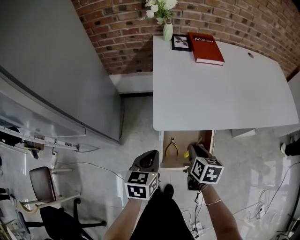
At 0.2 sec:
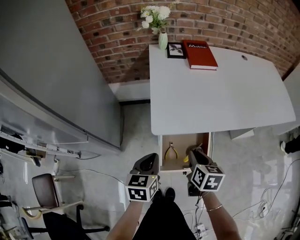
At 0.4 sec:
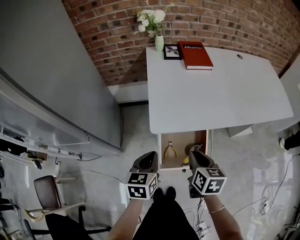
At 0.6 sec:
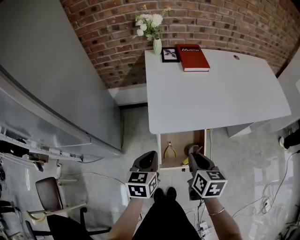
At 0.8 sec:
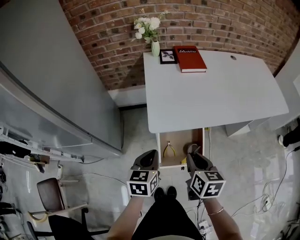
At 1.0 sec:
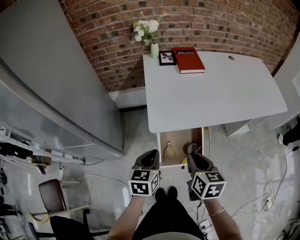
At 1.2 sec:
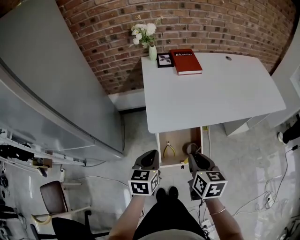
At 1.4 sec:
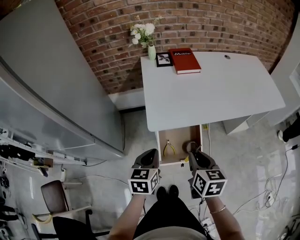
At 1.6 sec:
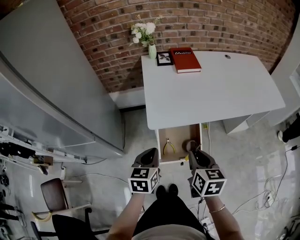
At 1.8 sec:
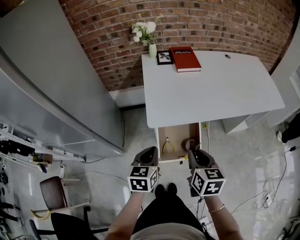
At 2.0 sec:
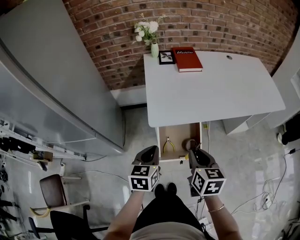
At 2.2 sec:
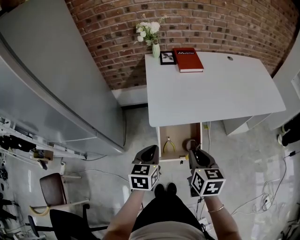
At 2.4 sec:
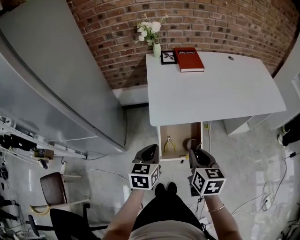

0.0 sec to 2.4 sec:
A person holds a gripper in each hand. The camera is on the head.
0.0 sec to 1.2 sec: The left gripper heads upward, covering some 10 cm, while the right gripper is displaced upward and backward by some 20 cm.
1.2 sec to 2.4 sec: The grippers make only small movements.

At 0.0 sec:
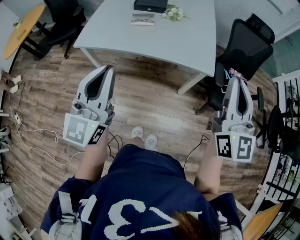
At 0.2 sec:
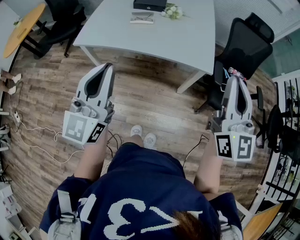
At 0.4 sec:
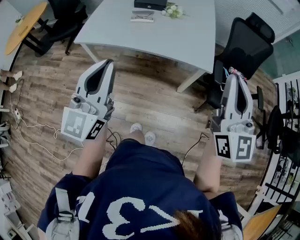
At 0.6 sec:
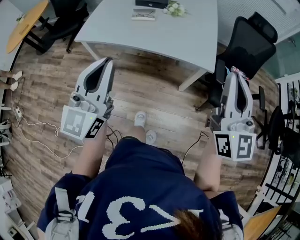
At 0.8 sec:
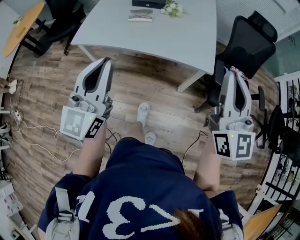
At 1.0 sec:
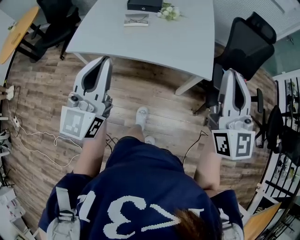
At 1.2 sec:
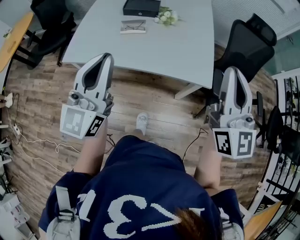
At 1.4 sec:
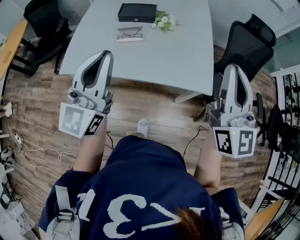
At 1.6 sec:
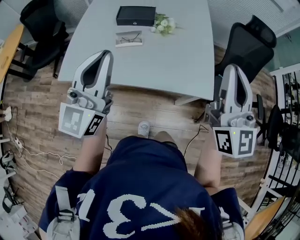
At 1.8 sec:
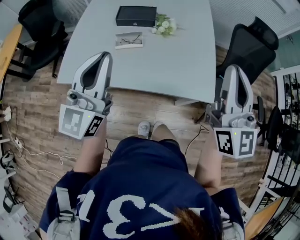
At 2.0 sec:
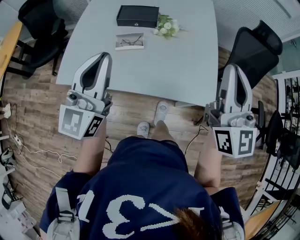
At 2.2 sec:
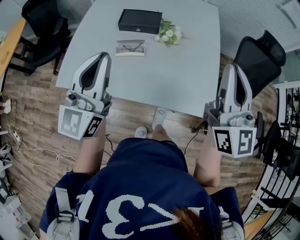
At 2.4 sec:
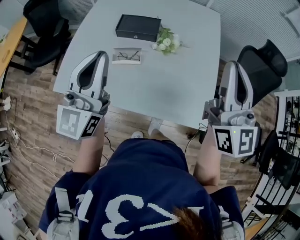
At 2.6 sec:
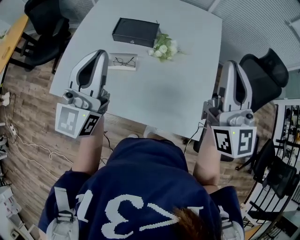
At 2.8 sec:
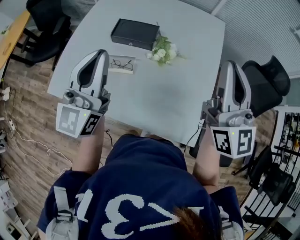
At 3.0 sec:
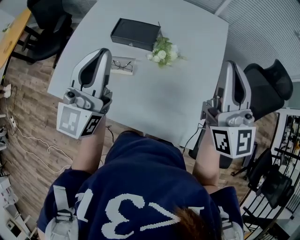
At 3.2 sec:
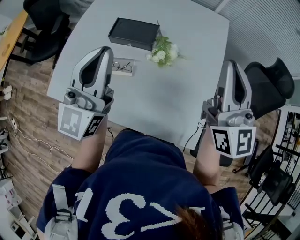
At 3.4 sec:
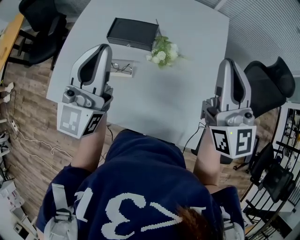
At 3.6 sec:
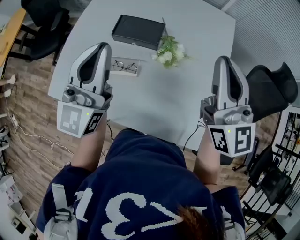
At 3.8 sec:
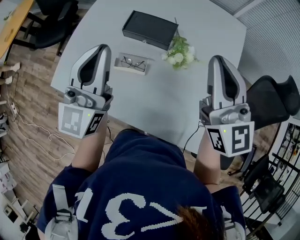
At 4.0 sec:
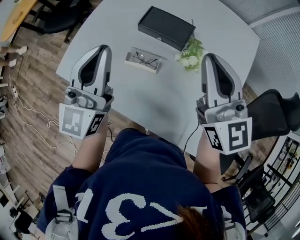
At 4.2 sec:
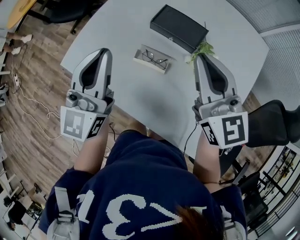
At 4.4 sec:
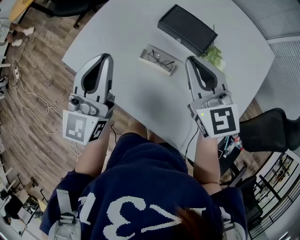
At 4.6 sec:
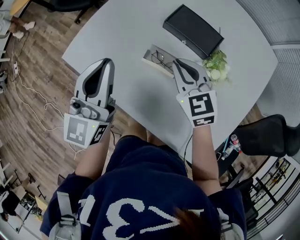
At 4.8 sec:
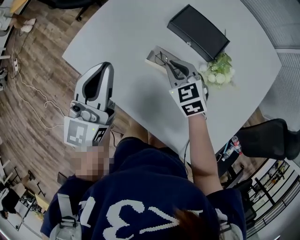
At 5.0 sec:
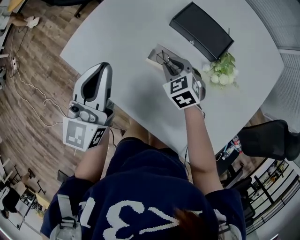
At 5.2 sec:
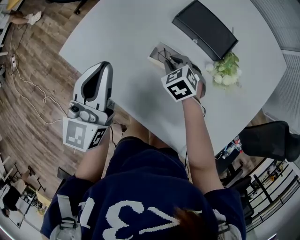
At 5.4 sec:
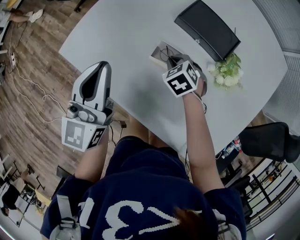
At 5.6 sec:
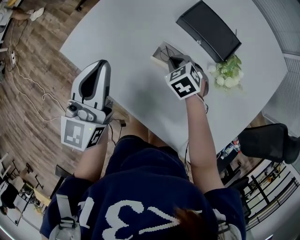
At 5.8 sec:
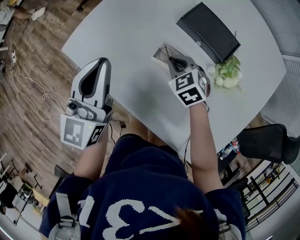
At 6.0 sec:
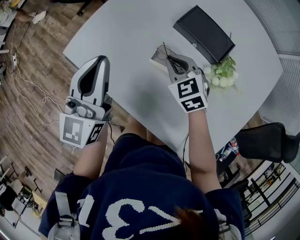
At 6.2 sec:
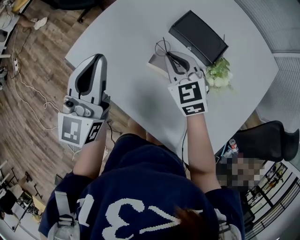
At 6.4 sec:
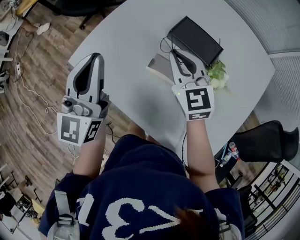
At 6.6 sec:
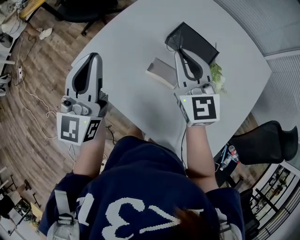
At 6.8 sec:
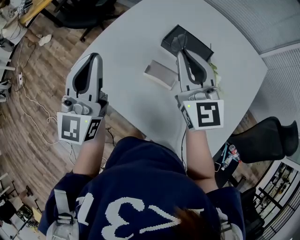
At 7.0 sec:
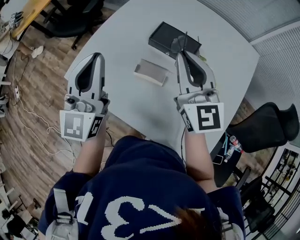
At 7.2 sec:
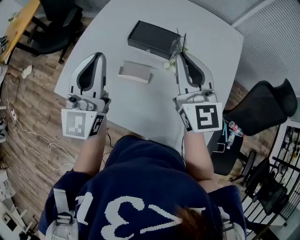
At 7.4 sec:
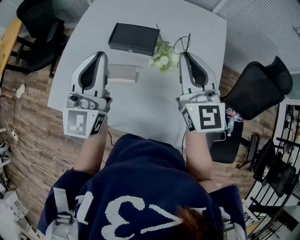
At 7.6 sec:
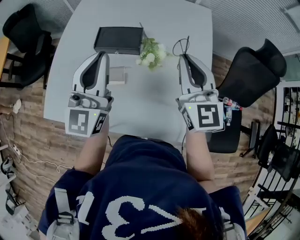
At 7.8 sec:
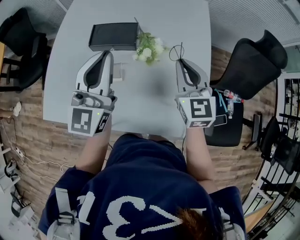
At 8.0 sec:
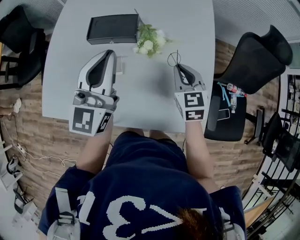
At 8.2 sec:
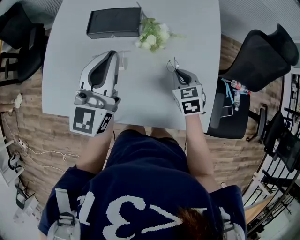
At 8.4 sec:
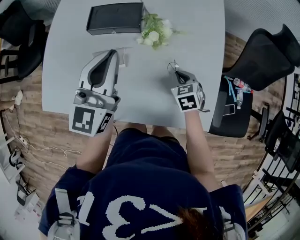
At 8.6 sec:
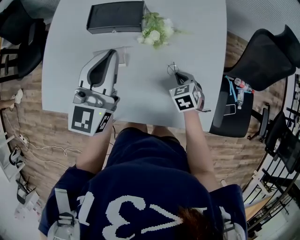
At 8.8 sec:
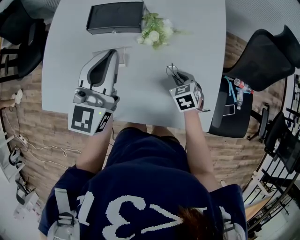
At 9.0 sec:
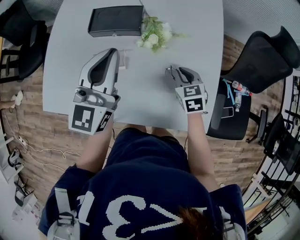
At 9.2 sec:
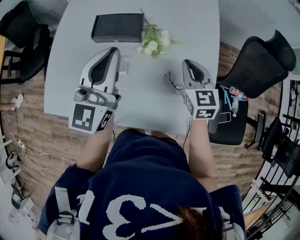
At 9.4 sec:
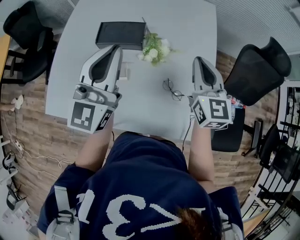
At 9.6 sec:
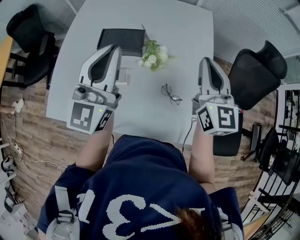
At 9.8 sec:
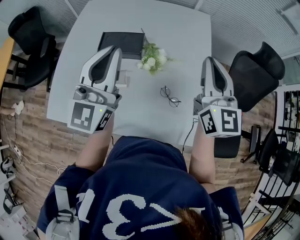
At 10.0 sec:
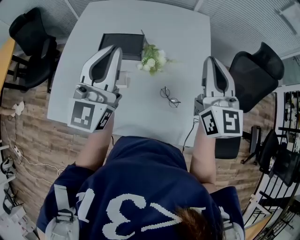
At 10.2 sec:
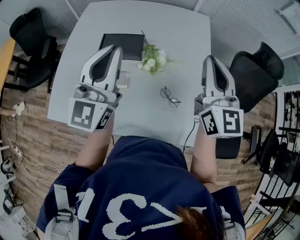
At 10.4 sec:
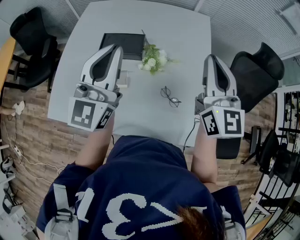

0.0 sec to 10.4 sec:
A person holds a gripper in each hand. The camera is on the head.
0.0 sec to 1.4 sec: Both grippers move forward, about 20 cm.
1.4 sec to 3.0 sec: The grippers both shift forward by approximately 30 cm.
3.0 sec to 4.4 sec: The right gripper changes place by some 30 cm, and rotates about 40 degrees; the left gripper changes place by some 20 cm, and rotates about 20 degrees.
4.4 sec to 6.0 sec: The left gripper goes about 5 cm to the left; the right gripper moves downward and to the left, about 20 cm, and changes its angle by some 30 degrees.
6.0 sec to 7.4 sec: The right gripper travels upward by approximately 25 cm, and angles its fingers upward, by about 40 degrees. Meanwhile the left gripper shifts by about 20 cm, and swivels approximately 30 degrees.
7.4 sec to 9.0 sec: The left gripper is displaced downward and to the right by approximately 10 cm, while the right gripper moves downward, some 30 cm, and tips its fingers downward by some 50 degrees.
9.0 sec to 10.4 sec: The left gripper heads upward, covering approximately 10 cm. Meanwhile the right gripper is displaced upward by roughly 35 cm, and tilts its fingers some 50 degrees upward.

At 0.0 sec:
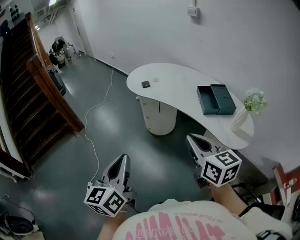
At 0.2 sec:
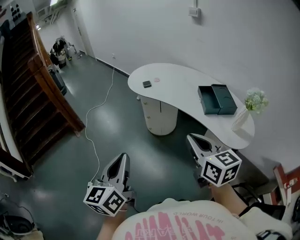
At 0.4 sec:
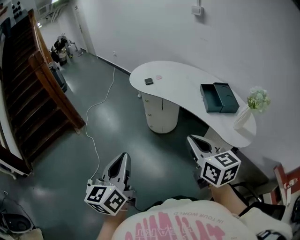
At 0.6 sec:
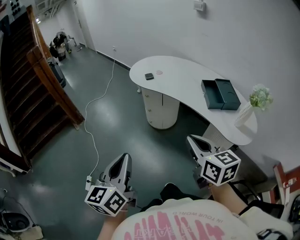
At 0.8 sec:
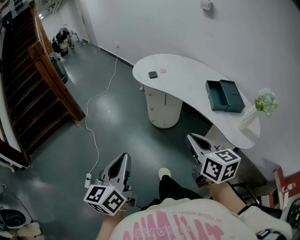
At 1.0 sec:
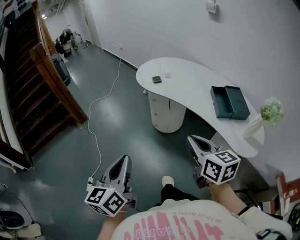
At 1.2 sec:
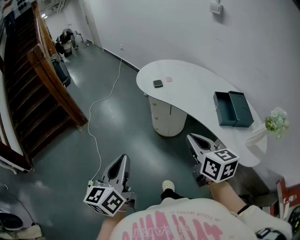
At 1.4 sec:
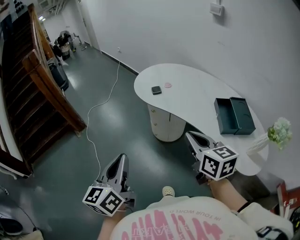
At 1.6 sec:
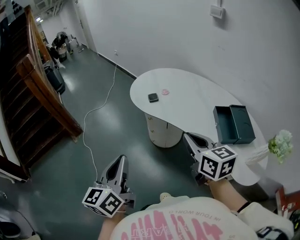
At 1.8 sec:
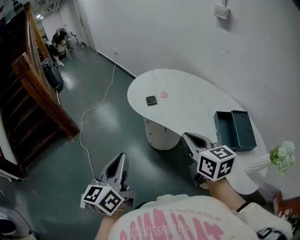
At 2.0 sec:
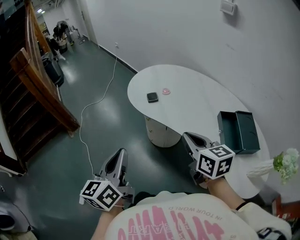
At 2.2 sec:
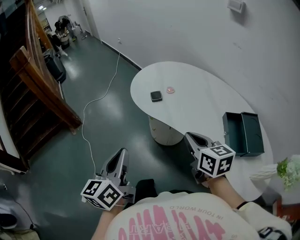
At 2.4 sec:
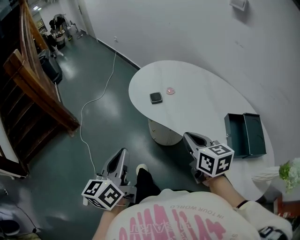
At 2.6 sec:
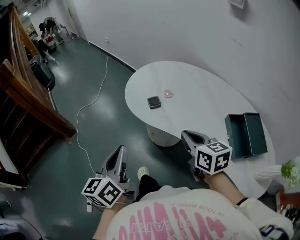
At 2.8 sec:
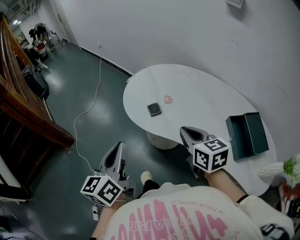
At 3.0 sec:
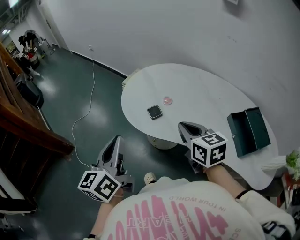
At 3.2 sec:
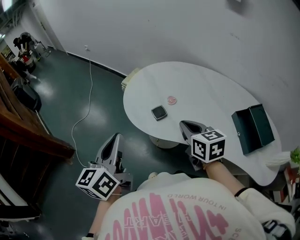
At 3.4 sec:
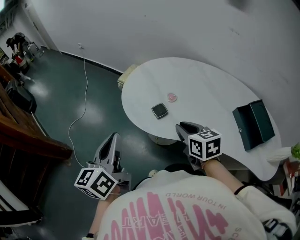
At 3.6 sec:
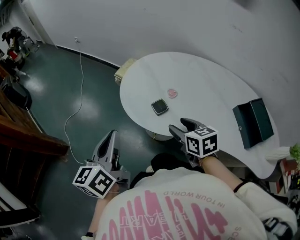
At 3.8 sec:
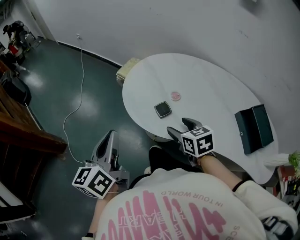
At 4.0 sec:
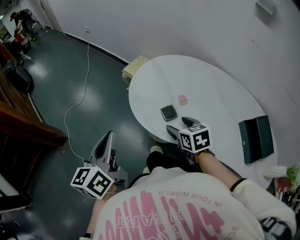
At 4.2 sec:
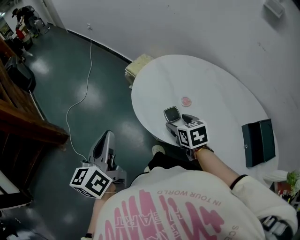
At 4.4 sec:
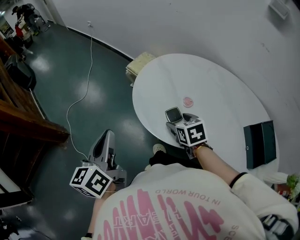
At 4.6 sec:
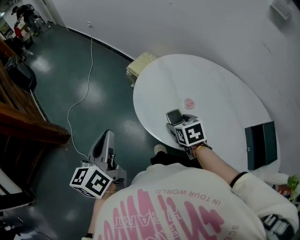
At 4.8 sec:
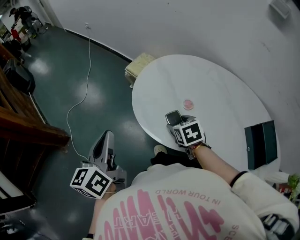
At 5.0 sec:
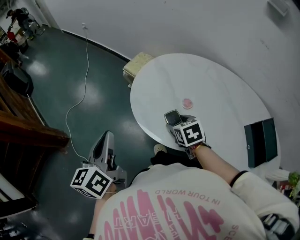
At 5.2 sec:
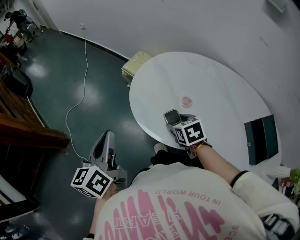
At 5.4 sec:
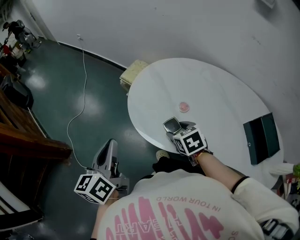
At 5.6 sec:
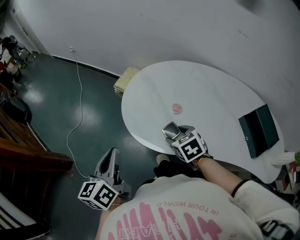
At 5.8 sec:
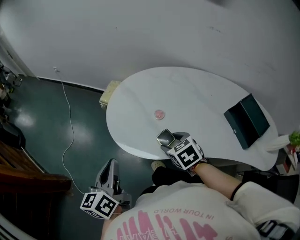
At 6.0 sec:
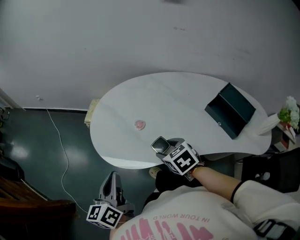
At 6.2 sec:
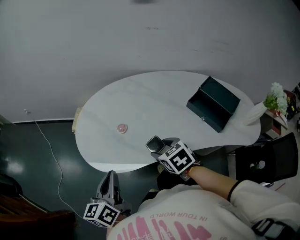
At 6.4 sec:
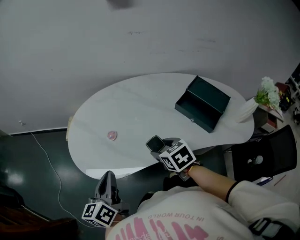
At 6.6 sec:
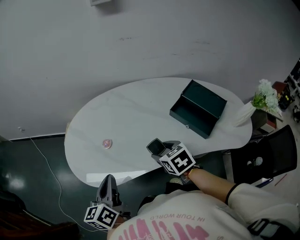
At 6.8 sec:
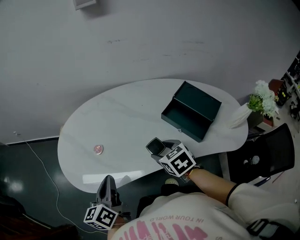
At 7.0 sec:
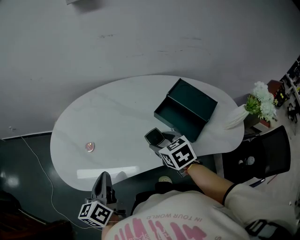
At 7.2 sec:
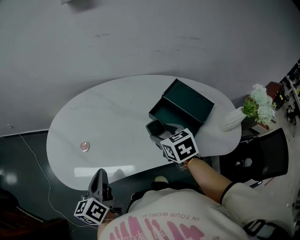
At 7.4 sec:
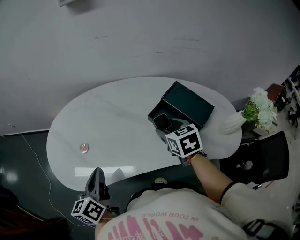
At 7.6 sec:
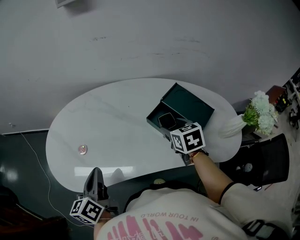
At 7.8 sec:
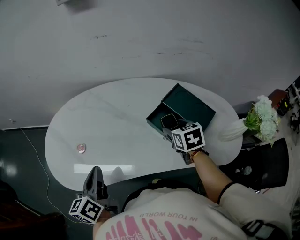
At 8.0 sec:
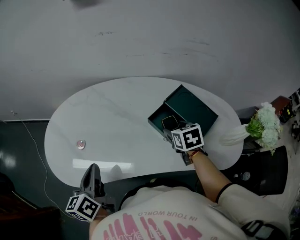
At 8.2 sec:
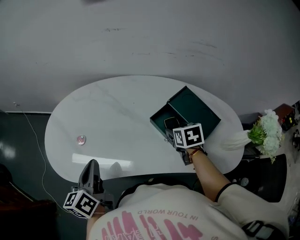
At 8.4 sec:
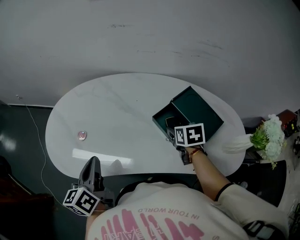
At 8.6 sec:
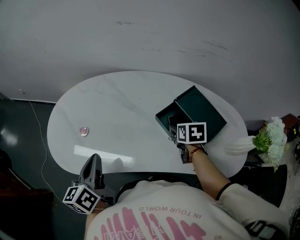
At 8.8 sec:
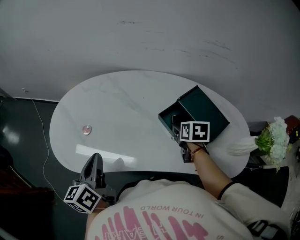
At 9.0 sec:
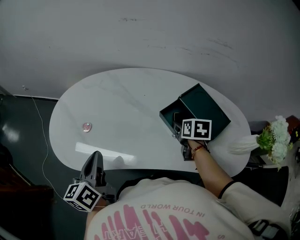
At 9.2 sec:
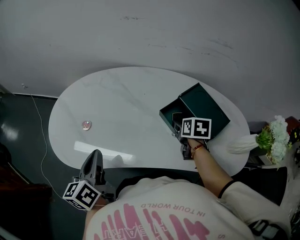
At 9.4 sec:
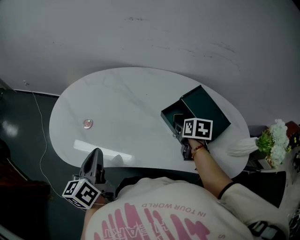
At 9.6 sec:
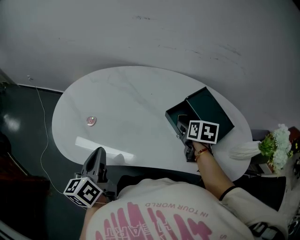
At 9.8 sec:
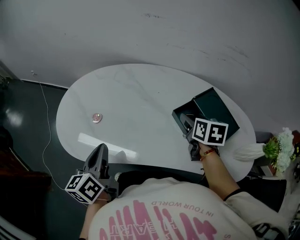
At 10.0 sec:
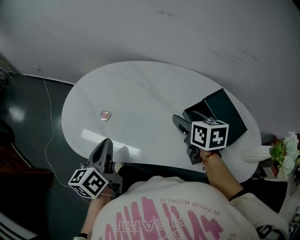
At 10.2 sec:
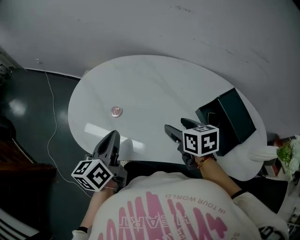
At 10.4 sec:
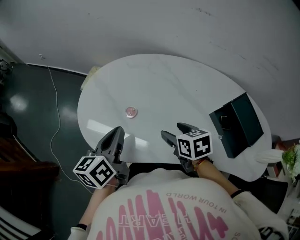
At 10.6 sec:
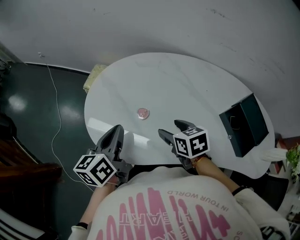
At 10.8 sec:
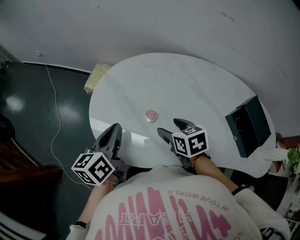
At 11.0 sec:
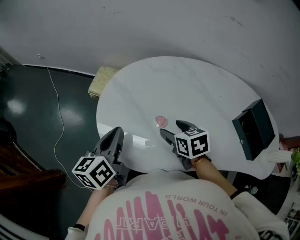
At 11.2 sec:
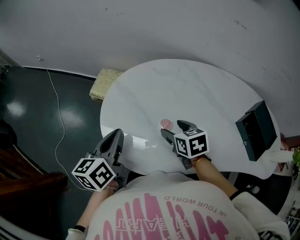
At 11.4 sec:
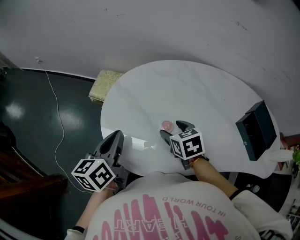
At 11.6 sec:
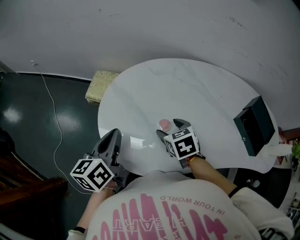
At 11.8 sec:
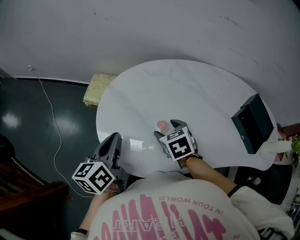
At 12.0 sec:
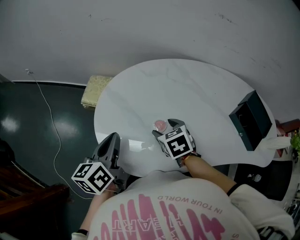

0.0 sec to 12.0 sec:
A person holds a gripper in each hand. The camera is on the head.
0.0 sec to 1.6 sec: Both grippers move forward, roughly 25 cm.
1.6 sec to 3.0 sec: Both grippers move forward, approximately 30 cm.
3.0 sec to 4.4 sec: The left gripper travels forward, to the left and downward by some 15 cm. Meanwhile the right gripper moves downward, forward and to the left, about 20 cm, changes its angle by approximately 30 degrees, and opens its fingers.
4.4 sec to 6.0 sec: The left gripper moves to the right, about 10 cm, and rotates approximately 30 degrees; the right gripper goes some 10 cm backward and to the right.
6.0 sec to 7.6 sec: The left gripper is displaced to the right and forward by about 25 cm. Meanwhile the right gripper shifts some 35 cm to the right, and swivels about 30 degrees.
7.6 sec to 9.0 sec: The right gripper goes some 5 cm downward.
9.0 sec to 10.4 sec: The right gripper is displaced to the left by about 30 cm, and rotates about 30 degrees. Meanwhile the left gripper is displaced to the left and forward by some 15 cm.
10.4 sec to 12.0 sec: Both grippers travel together to the left and forward, approximately 20 cm.
